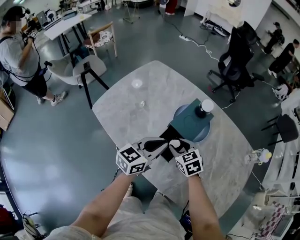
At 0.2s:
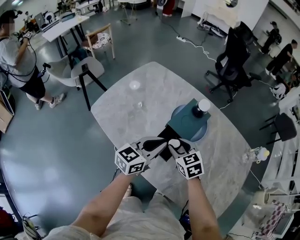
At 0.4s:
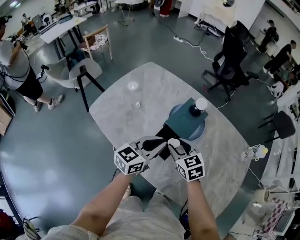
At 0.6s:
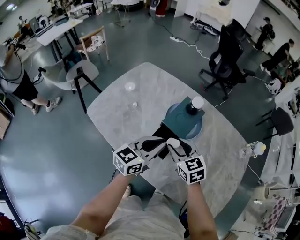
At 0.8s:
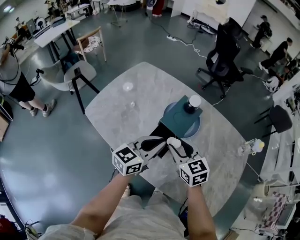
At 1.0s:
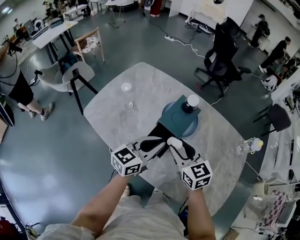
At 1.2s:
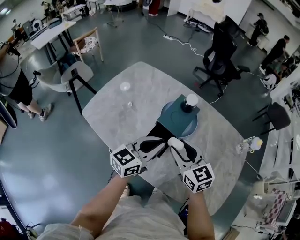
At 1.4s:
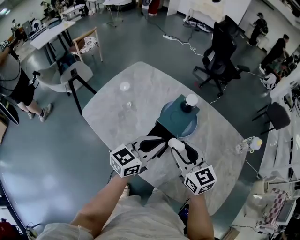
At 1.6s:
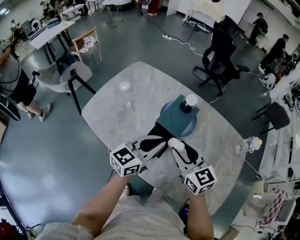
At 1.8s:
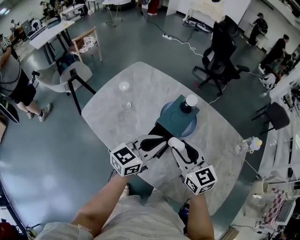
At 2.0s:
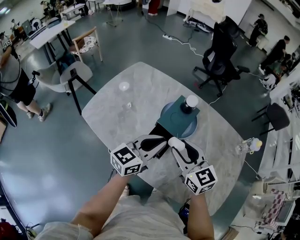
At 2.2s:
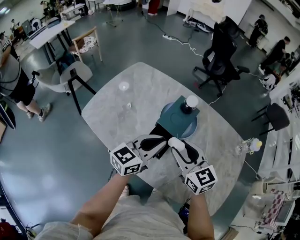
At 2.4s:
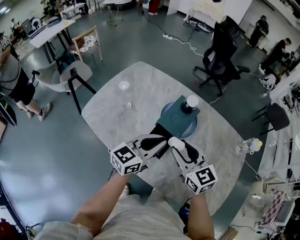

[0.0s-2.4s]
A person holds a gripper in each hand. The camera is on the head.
0.0s to 1.2s: The right gripper moves upward, about 15 cm, and changes its angle by about 30 degrees; the left gripper changes place by some 5 cm.
1.2s to 2.4s: There are only small adjustments of the grippers.

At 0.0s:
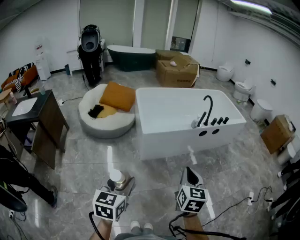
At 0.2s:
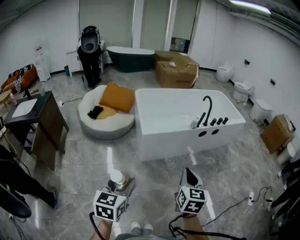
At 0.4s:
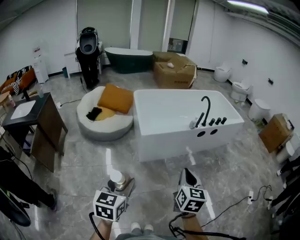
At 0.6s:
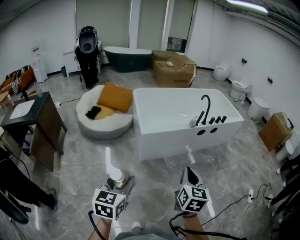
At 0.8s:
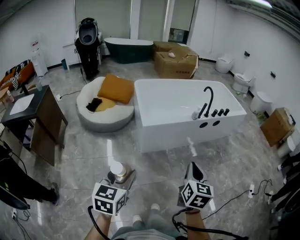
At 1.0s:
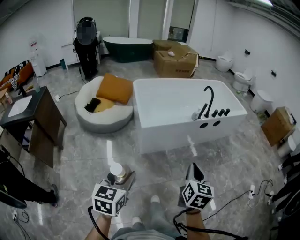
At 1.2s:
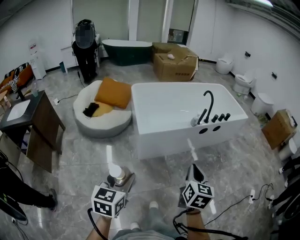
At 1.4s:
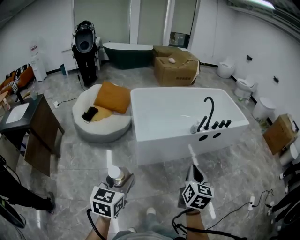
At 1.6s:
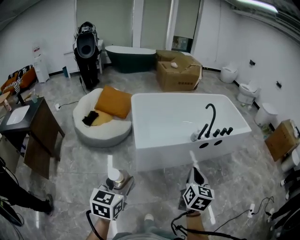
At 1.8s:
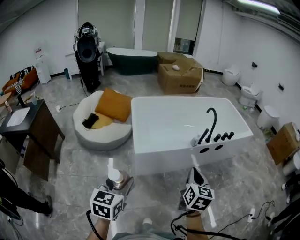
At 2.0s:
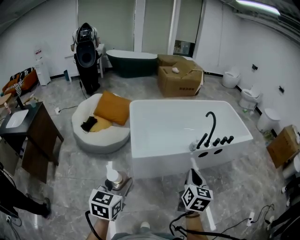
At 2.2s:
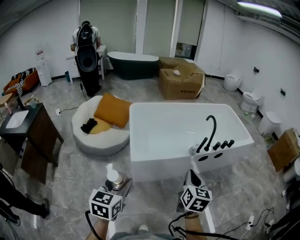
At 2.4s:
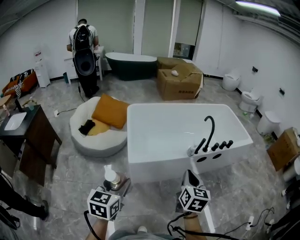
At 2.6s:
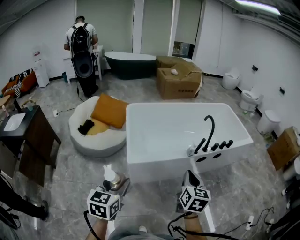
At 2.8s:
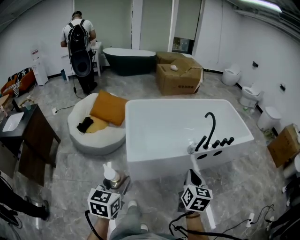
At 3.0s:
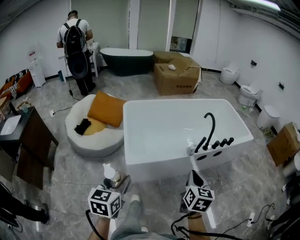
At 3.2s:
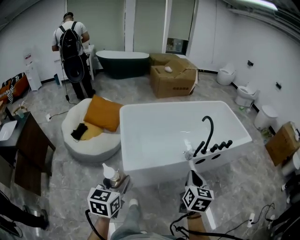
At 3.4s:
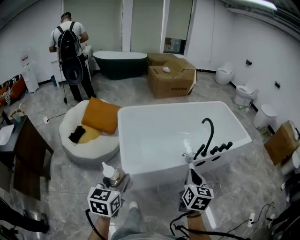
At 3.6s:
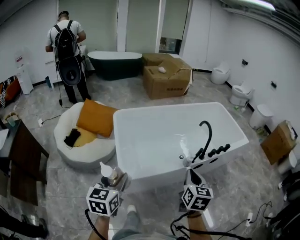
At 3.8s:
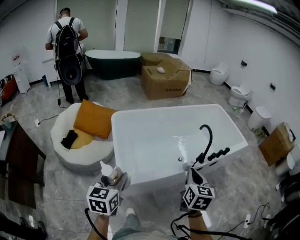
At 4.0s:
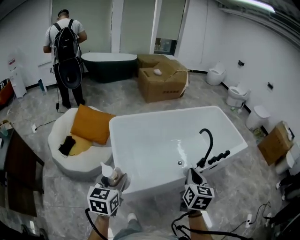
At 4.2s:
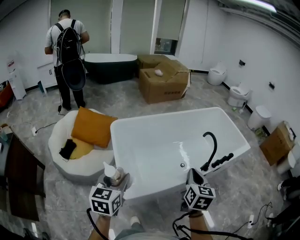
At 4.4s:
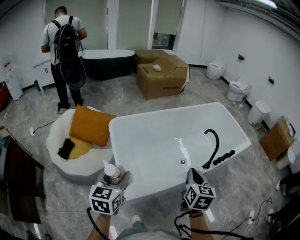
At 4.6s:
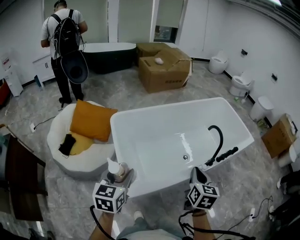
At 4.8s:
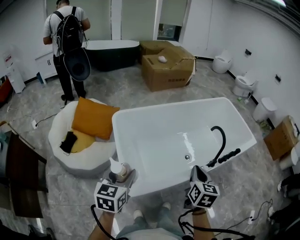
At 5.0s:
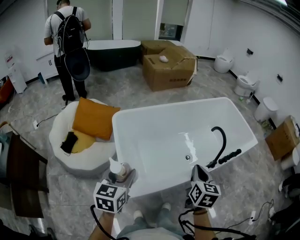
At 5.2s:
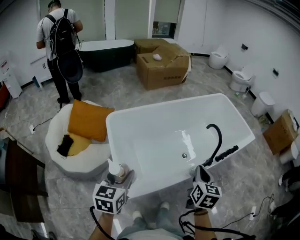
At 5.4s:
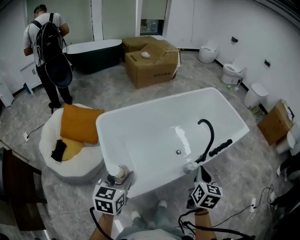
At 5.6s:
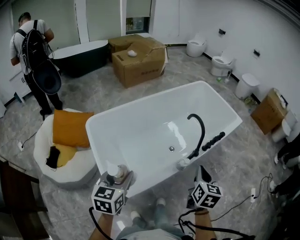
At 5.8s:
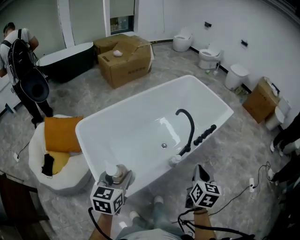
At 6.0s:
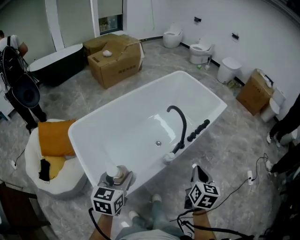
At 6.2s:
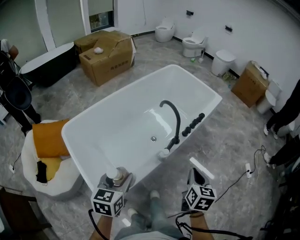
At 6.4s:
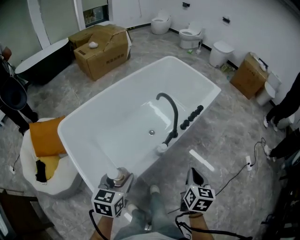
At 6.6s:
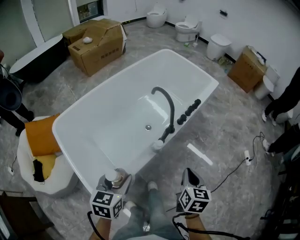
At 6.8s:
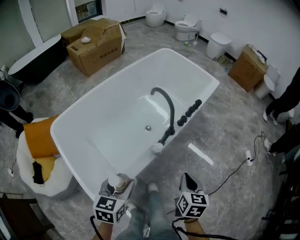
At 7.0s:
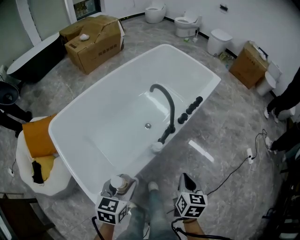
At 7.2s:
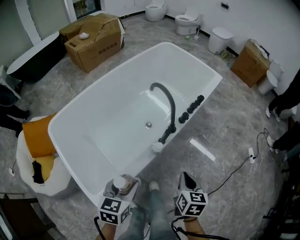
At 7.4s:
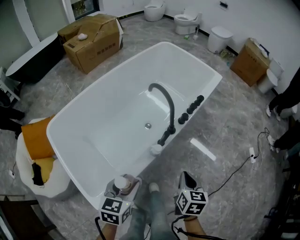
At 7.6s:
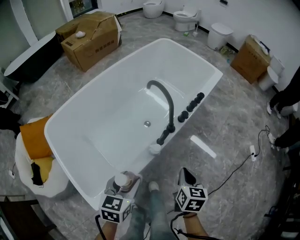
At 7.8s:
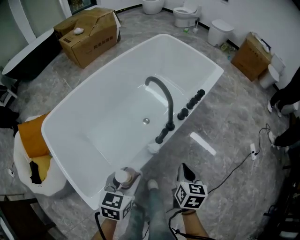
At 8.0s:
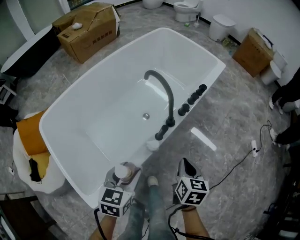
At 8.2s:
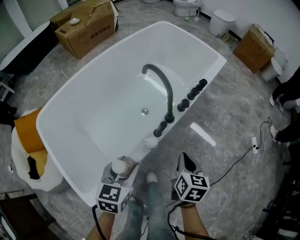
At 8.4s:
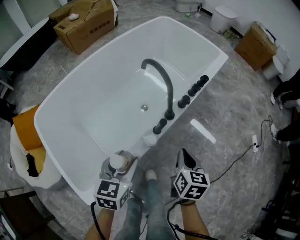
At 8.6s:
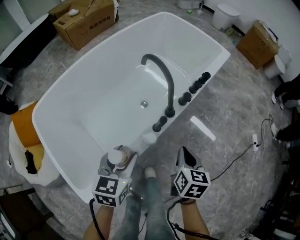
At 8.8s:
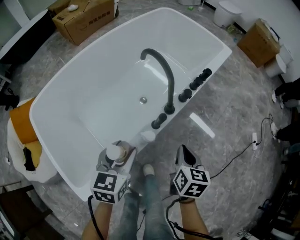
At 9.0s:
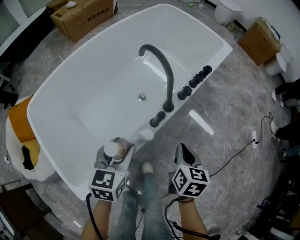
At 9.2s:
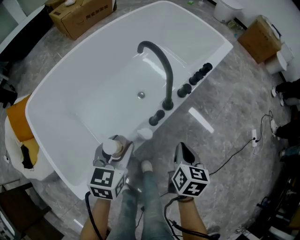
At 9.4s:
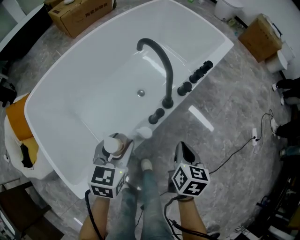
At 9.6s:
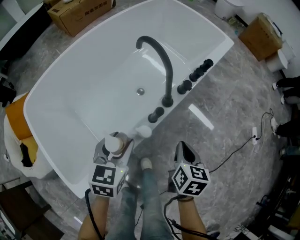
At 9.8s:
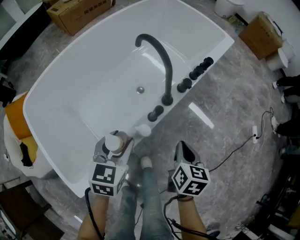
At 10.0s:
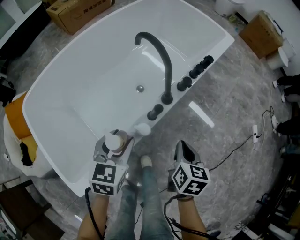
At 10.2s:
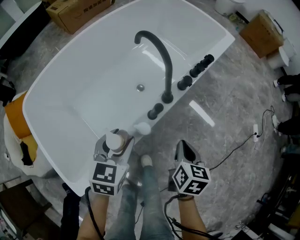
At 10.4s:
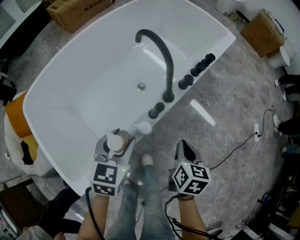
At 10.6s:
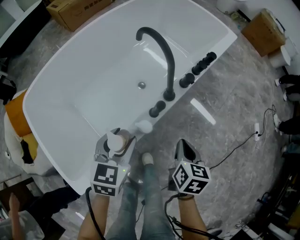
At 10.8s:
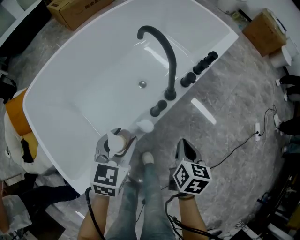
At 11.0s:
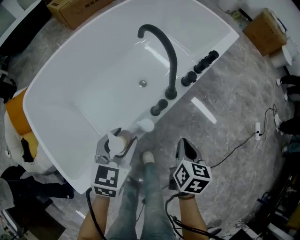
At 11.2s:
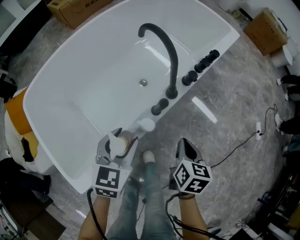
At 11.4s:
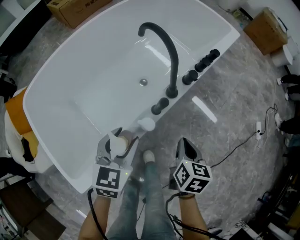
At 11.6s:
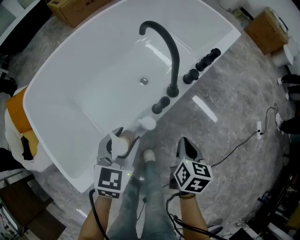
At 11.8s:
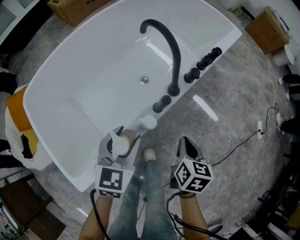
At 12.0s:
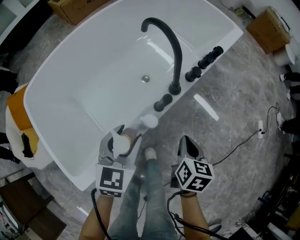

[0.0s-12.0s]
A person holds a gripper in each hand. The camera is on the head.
0.0s to 1.6s: The grippers both shift forward by approximately 20 cm.
1.6s to 3.0s: The two grippers go approximately 15 cm forward.
3.0s to 4.4s: The right gripper heads forward and to the left, covering some 25 cm; the left gripper heads forward, covering about 30 cm.
4.4s to 6.0s: The left gripper shifts about 20 cm to the right and forward, and changes its angle by about 20 degrees. The right gripper heads to the right, covering approximately 20 cm, and rotates about 20 degrees.
6.0s to 7.6s: The left gripper heads downward, to the right and forward, covering about 20 cm. The right gripper travels downward by about 15 cm.
7.6s to 9.0s: The grippers both shift forward and downward by some 10 cm.
9.0s to 12.0s: There are only small adjustments of the grippers.

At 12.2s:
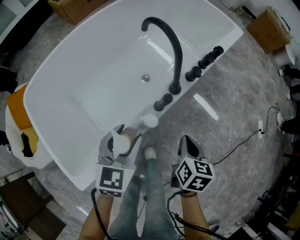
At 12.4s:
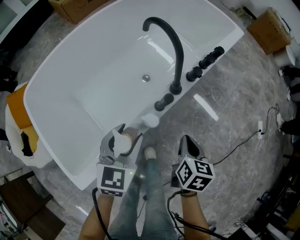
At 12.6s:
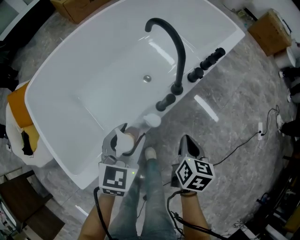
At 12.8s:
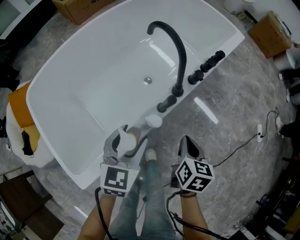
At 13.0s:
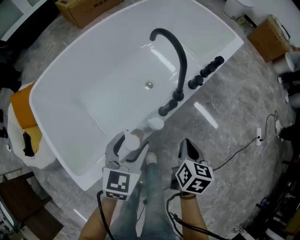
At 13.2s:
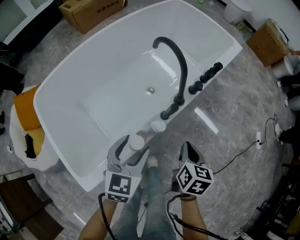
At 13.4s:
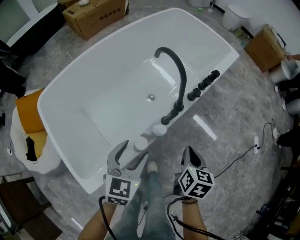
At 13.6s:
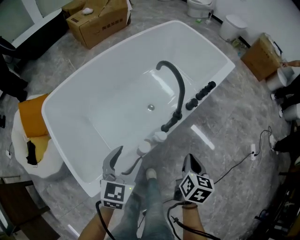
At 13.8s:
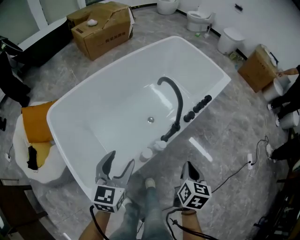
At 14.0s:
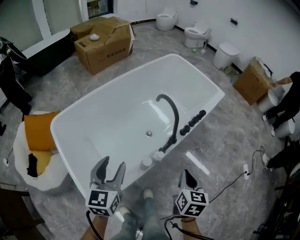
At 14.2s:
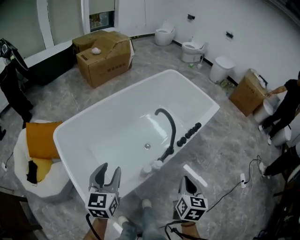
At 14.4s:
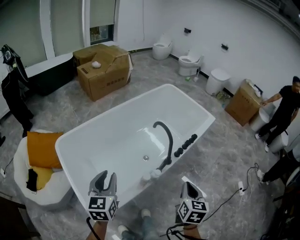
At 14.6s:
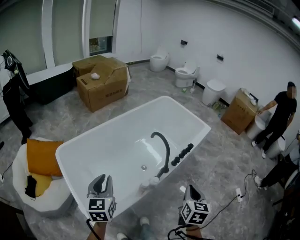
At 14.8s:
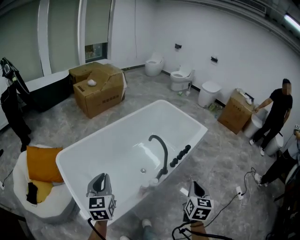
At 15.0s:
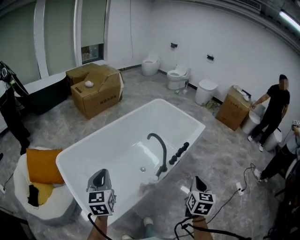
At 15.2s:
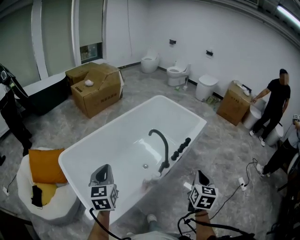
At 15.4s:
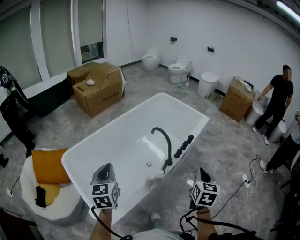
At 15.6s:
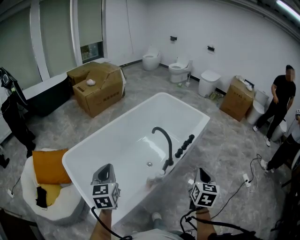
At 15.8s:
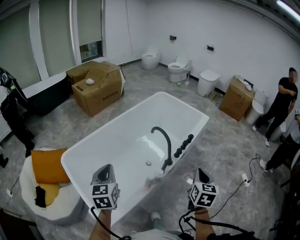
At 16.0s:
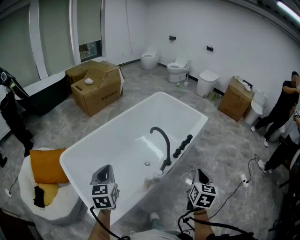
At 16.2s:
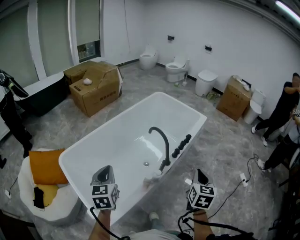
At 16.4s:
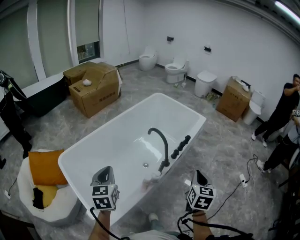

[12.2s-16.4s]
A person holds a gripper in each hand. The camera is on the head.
12.2s to 13.6s: Both grippers move upward, about 10 cm.
13.6s to 15.0s: The left gripper shifts about 25 cm upward and to the left, turns by roughly 20 degrees, and closes. The right gripper heads upward, covering some 25 cm, and rotates approximately 20 degrees.
15.0s to 16.4s: The grippers make only small movements.

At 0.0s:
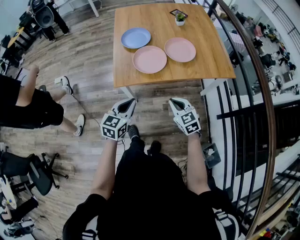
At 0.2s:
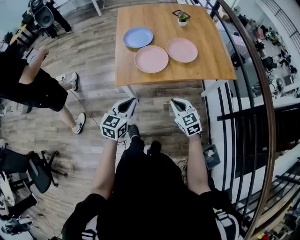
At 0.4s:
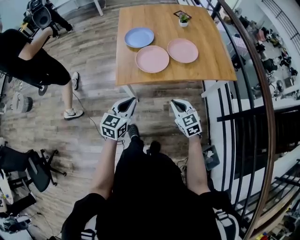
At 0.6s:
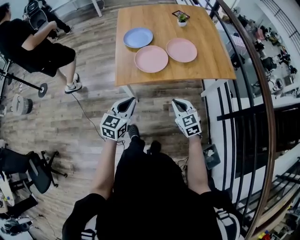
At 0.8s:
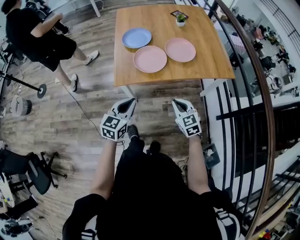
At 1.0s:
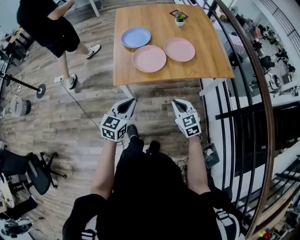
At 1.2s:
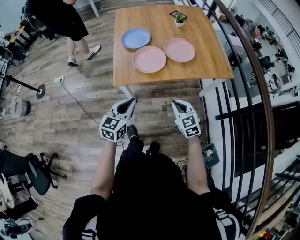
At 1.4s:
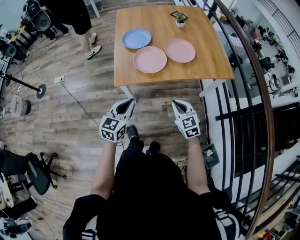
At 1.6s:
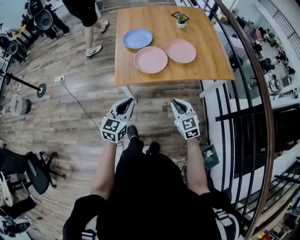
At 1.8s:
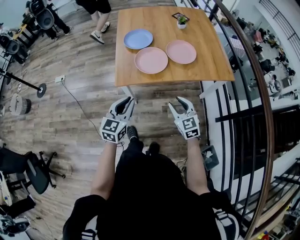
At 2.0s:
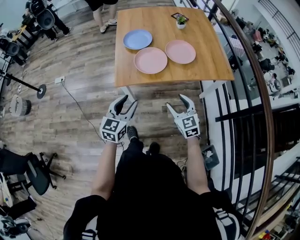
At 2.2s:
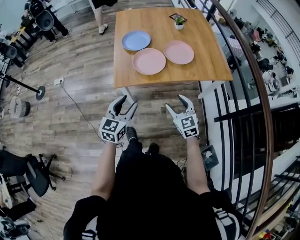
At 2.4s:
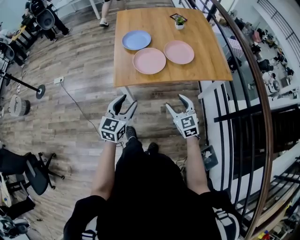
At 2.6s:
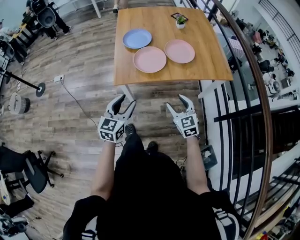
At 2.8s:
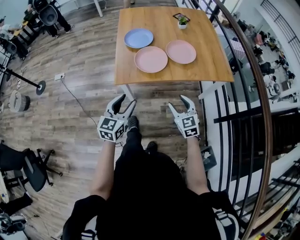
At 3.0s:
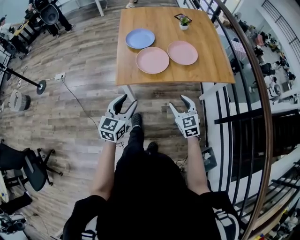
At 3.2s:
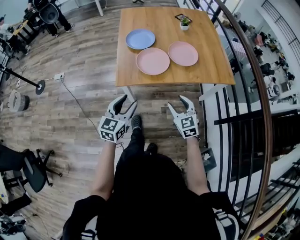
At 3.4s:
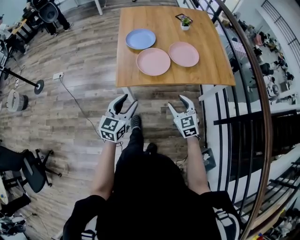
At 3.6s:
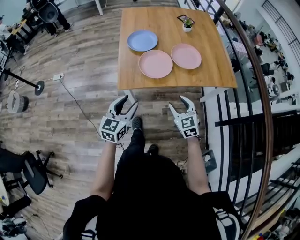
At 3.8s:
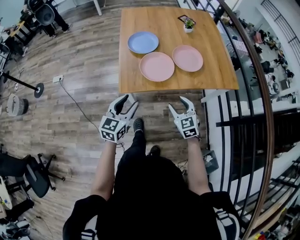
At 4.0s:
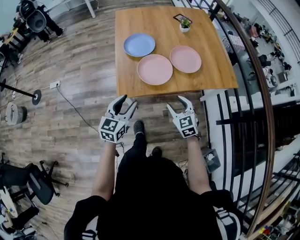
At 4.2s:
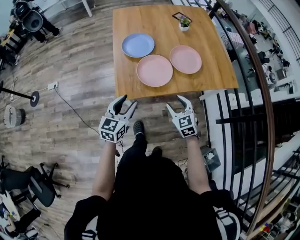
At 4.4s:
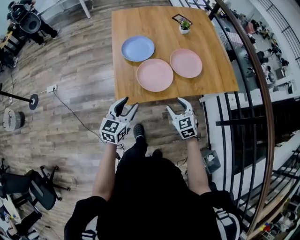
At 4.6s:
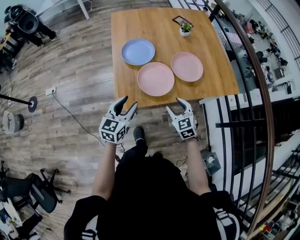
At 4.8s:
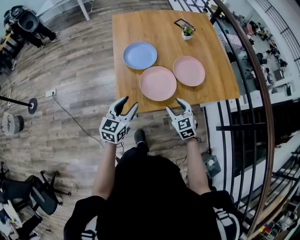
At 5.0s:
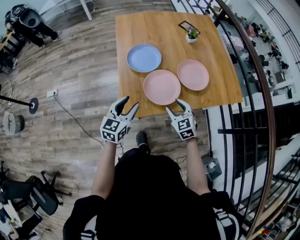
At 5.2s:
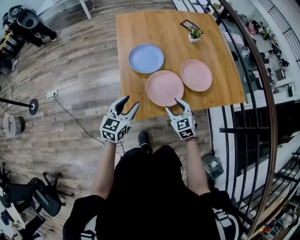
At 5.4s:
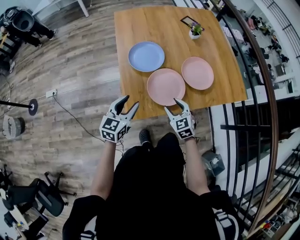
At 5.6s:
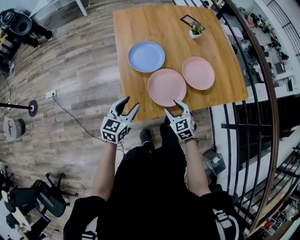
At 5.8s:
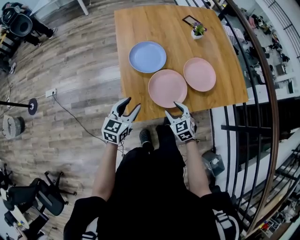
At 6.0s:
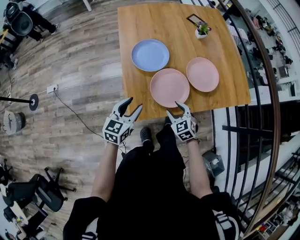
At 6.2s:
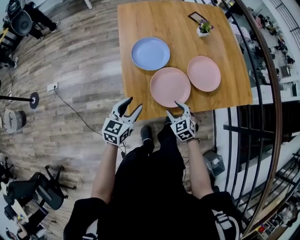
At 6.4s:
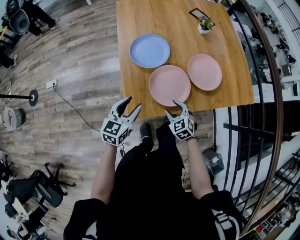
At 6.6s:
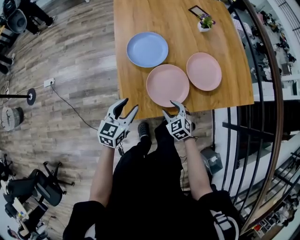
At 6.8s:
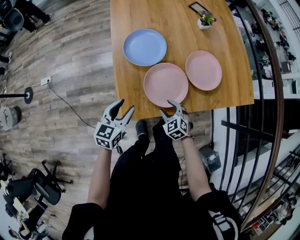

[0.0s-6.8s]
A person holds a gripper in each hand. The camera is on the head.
0.0s to 1.4s: The grippers make only small movements.
1.4s to 2.8s: The left gripper opens its fingers, while the right gripper opens up.
2.8s to 4.0s: The right gripper is displaced forward and to the left by some 10 cm, while the left gripper heads forward, covering about 10 cm.
4.0s to 5.4s: The grippers both shift forward and to the left by about 15 cm.
5.4s to 6.8s: The right gripper shifts roughly 10 cm downward. The left gripper goes about 5 cm downward.
